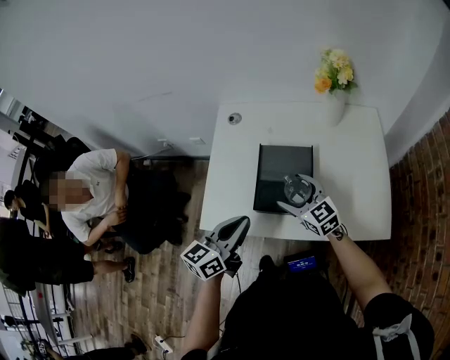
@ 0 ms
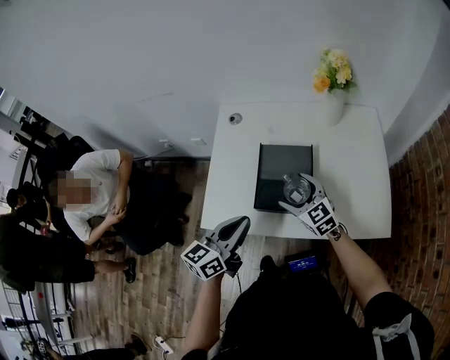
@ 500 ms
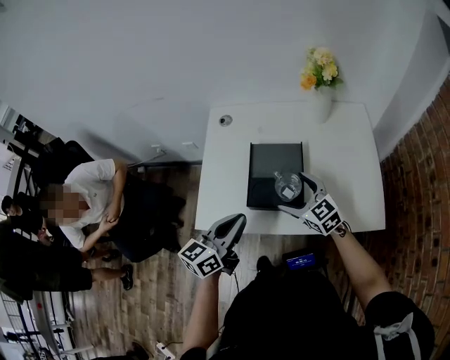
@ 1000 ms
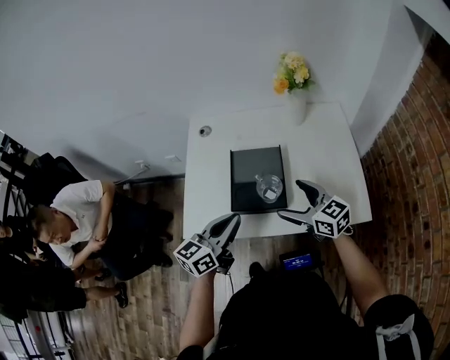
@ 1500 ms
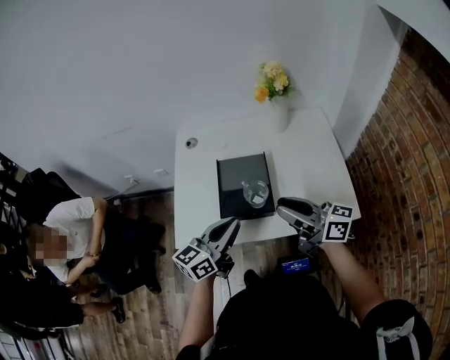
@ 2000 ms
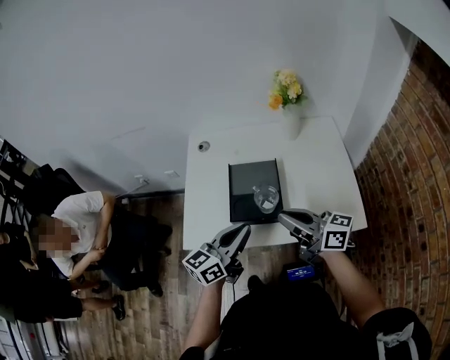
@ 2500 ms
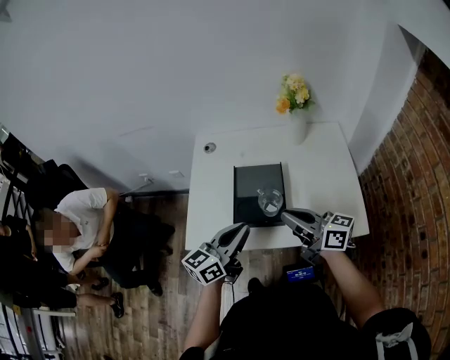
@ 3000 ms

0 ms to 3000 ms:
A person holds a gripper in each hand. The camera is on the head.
0 ms to 1500 ms: The right gripper travels to the right, backward and upward by roughly 10 cm.
1500 ms to 3000 ms: The right gripper heads upward, covering about 10 cm, rotates approximately 30 degrees, and closes.

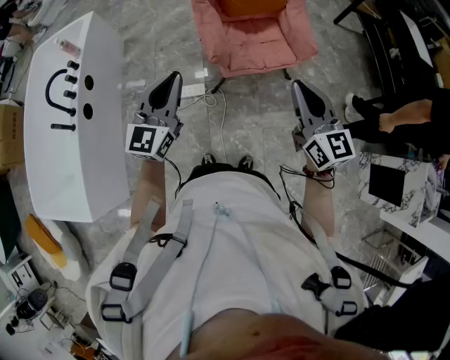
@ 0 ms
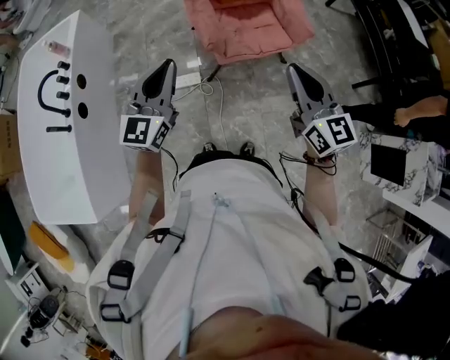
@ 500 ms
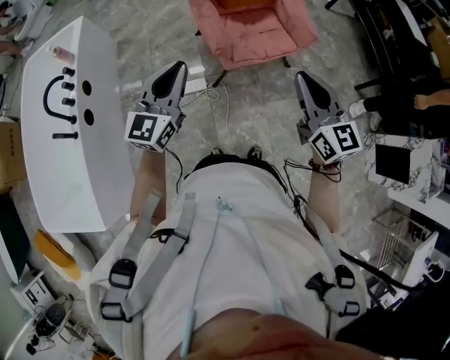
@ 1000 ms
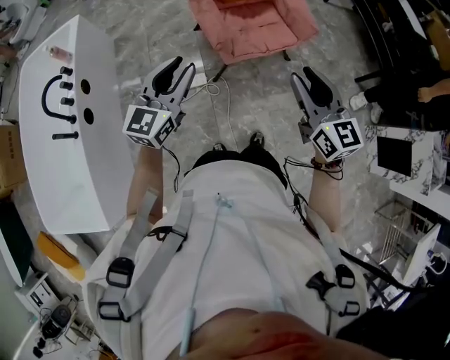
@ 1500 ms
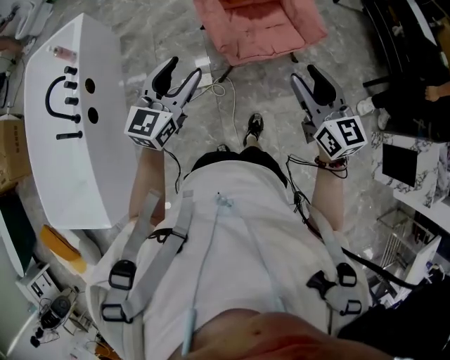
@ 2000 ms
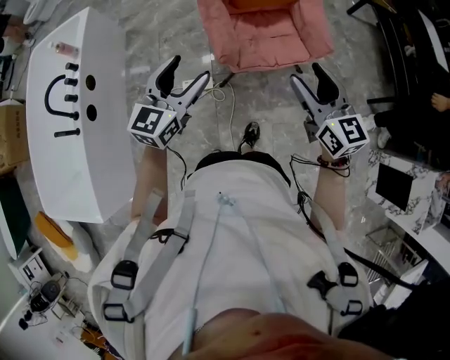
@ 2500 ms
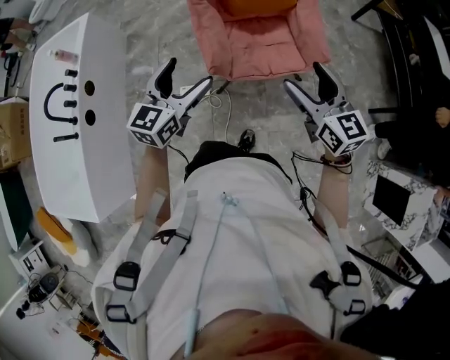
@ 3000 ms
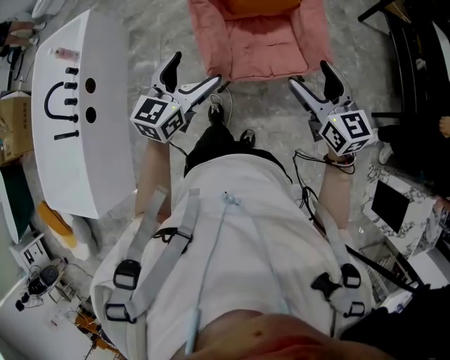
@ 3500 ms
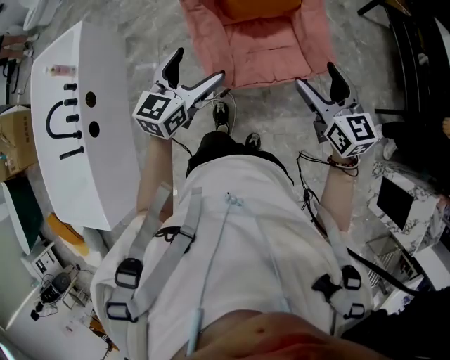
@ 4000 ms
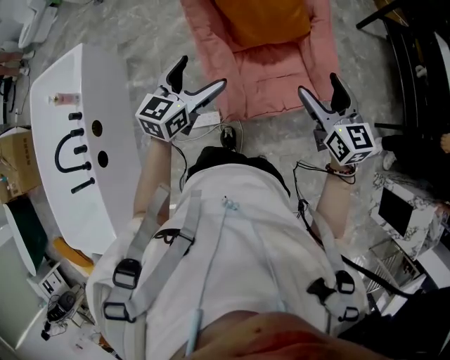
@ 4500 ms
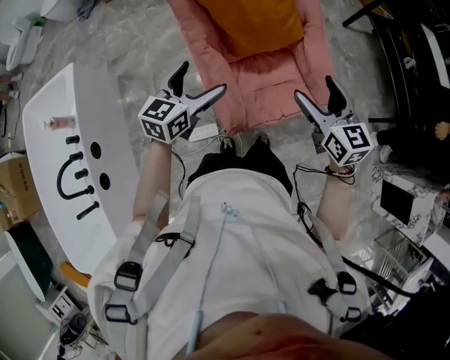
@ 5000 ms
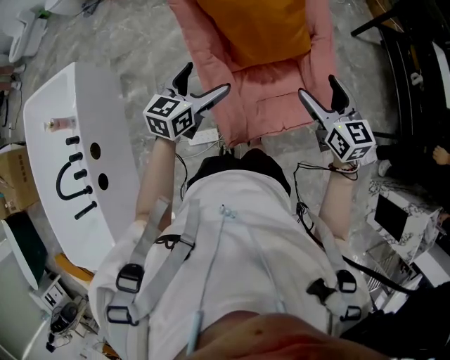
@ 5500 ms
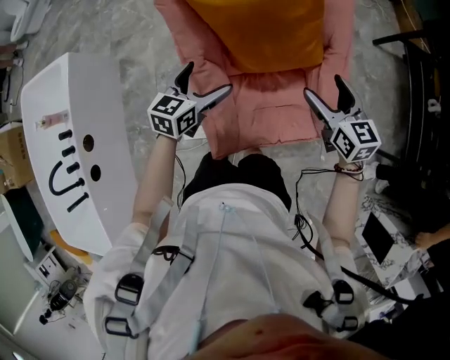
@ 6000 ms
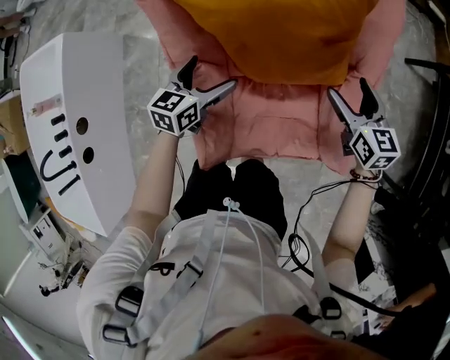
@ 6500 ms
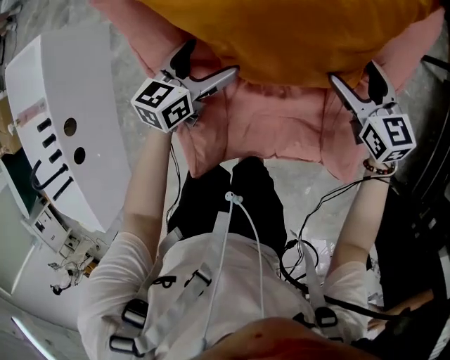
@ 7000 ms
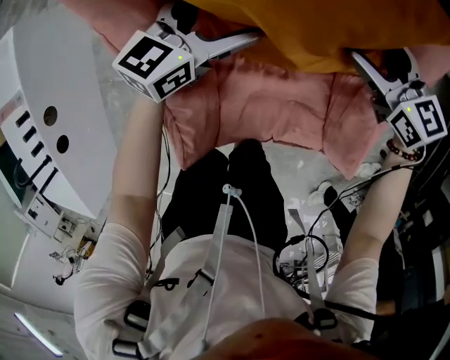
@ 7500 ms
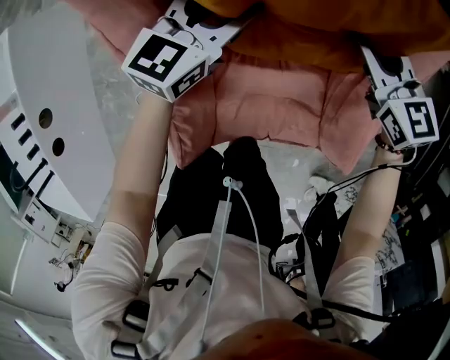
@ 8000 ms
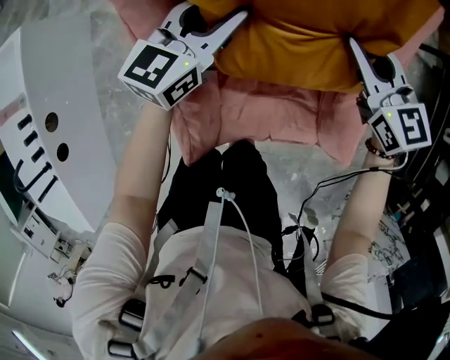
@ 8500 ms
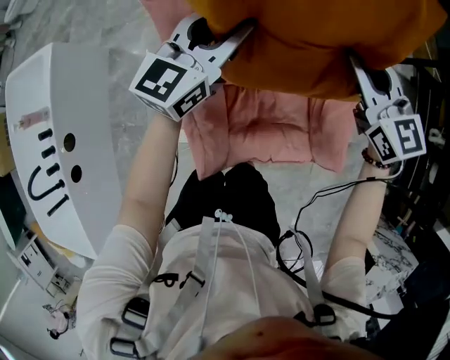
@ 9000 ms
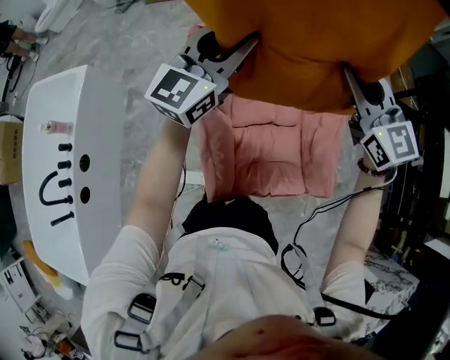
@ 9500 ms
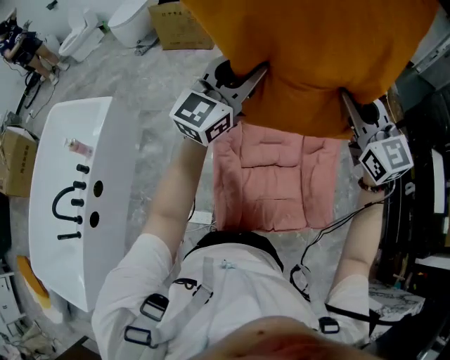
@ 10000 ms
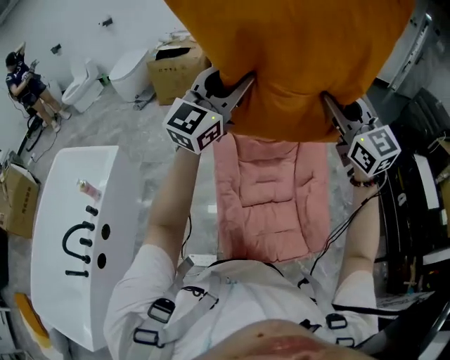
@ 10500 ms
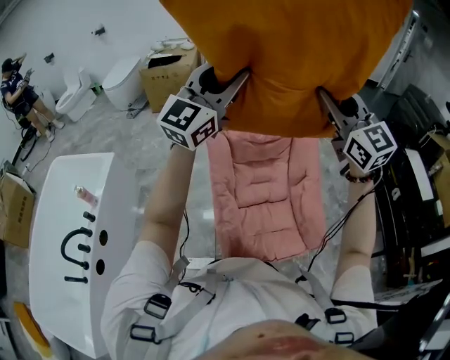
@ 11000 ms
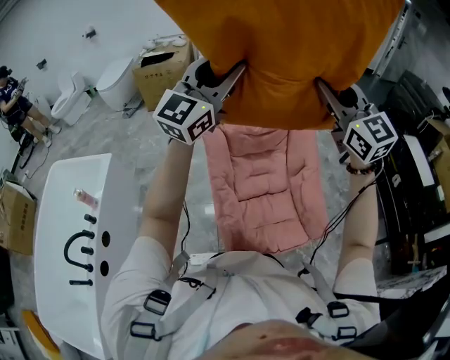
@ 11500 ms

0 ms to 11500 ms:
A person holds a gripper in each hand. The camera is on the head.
0 ms to 2000 ms: The left gripper ends up some 5 cm from where it was, and opens up. The right gripper ends up roughly 5 cm from where it was, and opens up.
2000 ms to 4000 ms: The grippers both shift forward and to the right by some 25 cm. The left gripper opens up. The right gripper opens its fingers.
4000 ms to 6000 ms: The left gripper is displaced forward and downward by approximately 35 cm; the right gripper goes some 35 cm forward.
6000 ms to 7500 ms: The right gripper moves forward and downward, roughly 30 cm, and rotates approximately 20 degrees. The left gripper moves forward, downward and to the right, some 25 cm.
7500 ms to 9500 ms: The grippers both shift upward by some 40 cm. The right gripper turns by some 40 degrees, and closes up. The left gripper swivels roughly 40 degrees, and closes.
9500 ms to 11500 ms: Both grippers travel together upward and backward, roughly 30 cm. The left gripper changes its angle by roughly 20 degrees.

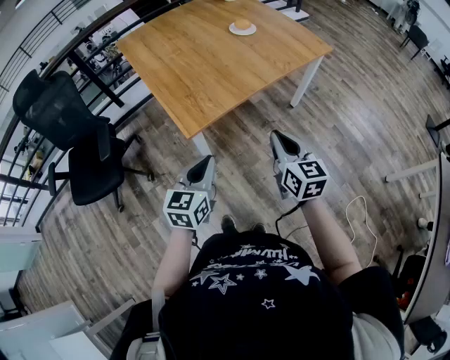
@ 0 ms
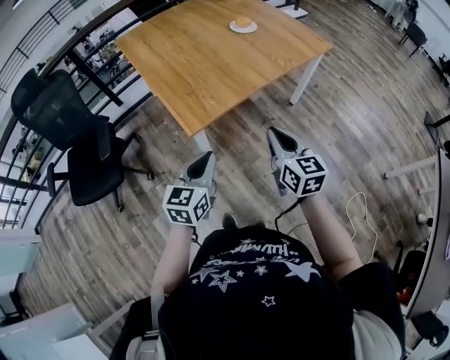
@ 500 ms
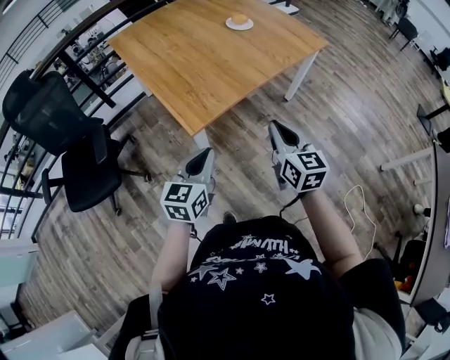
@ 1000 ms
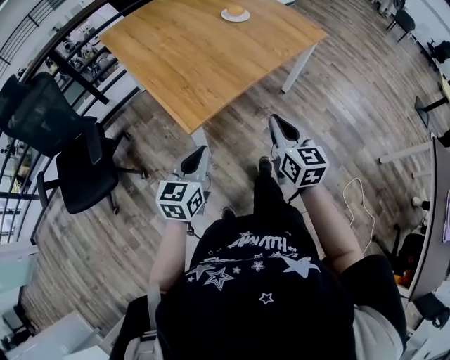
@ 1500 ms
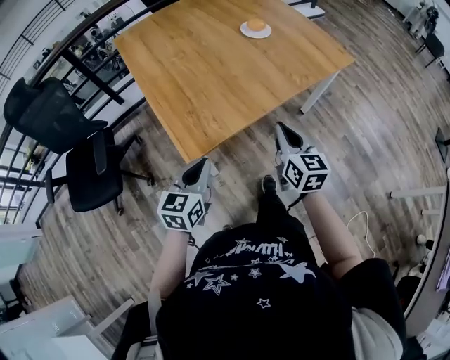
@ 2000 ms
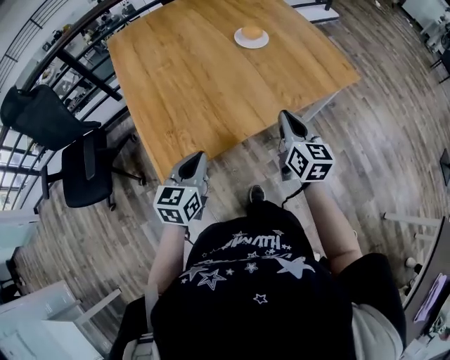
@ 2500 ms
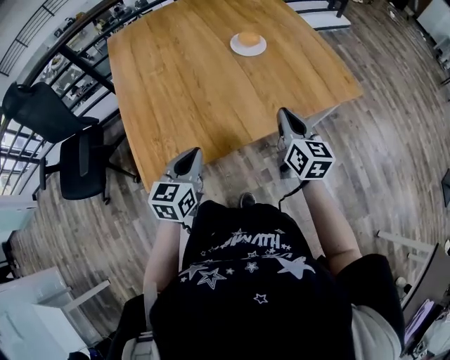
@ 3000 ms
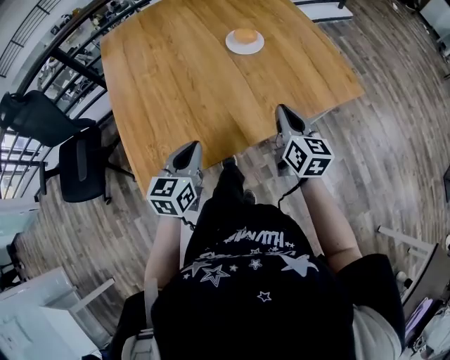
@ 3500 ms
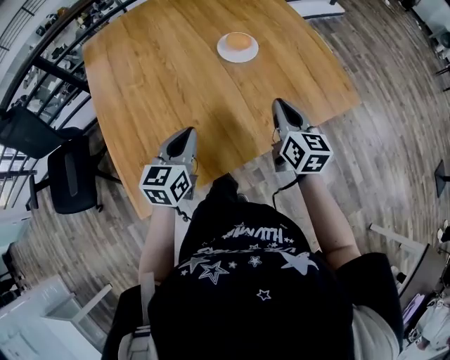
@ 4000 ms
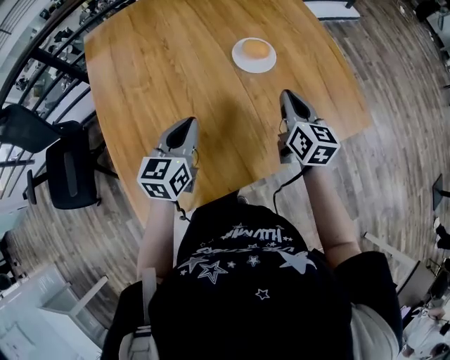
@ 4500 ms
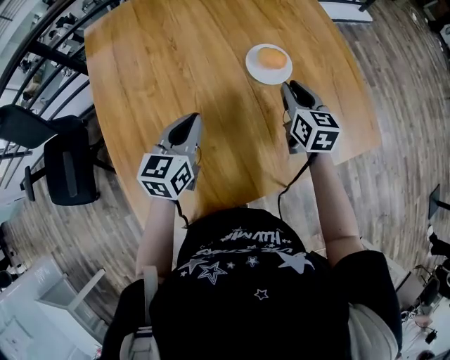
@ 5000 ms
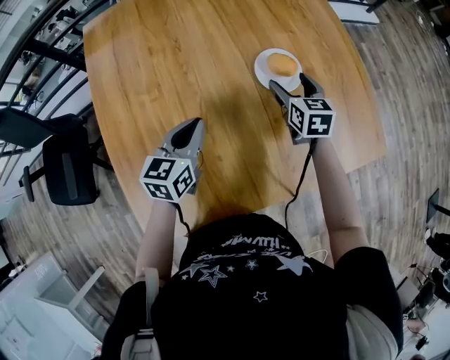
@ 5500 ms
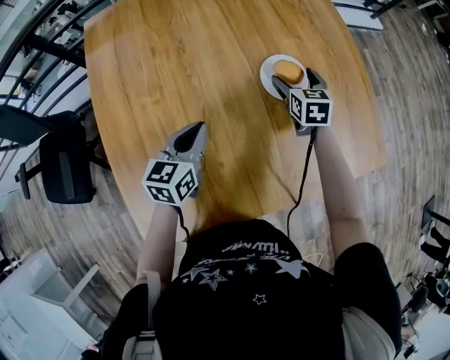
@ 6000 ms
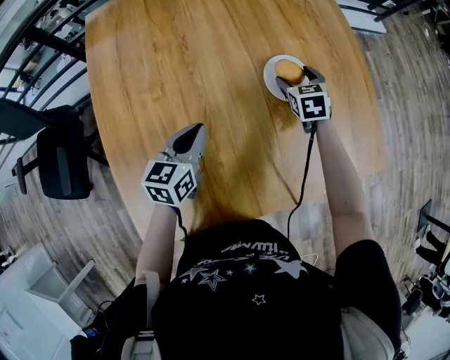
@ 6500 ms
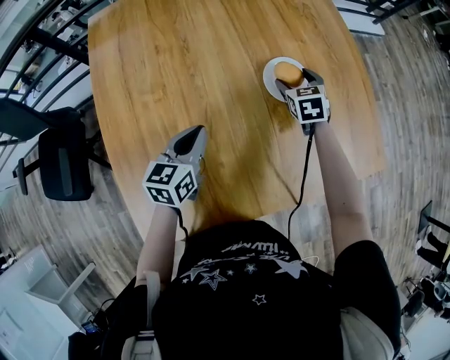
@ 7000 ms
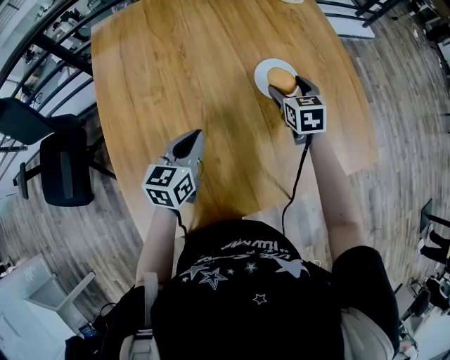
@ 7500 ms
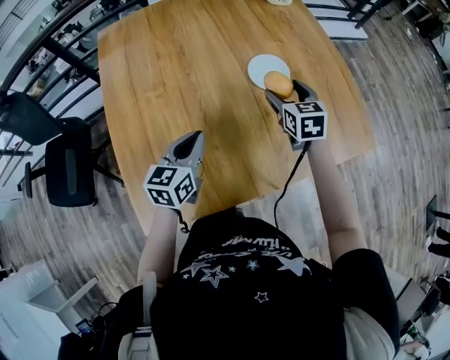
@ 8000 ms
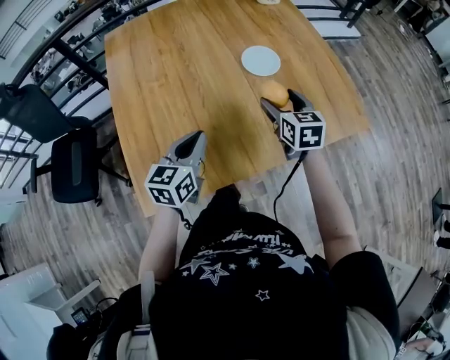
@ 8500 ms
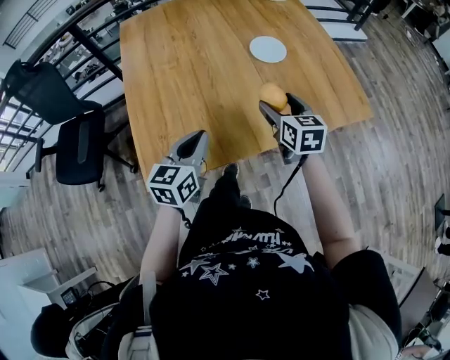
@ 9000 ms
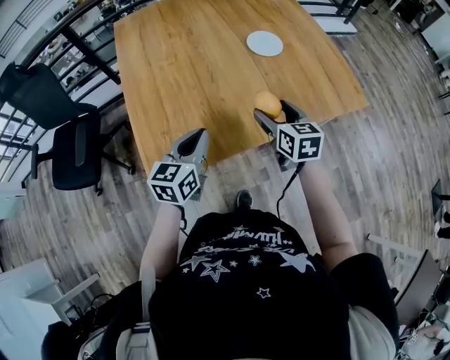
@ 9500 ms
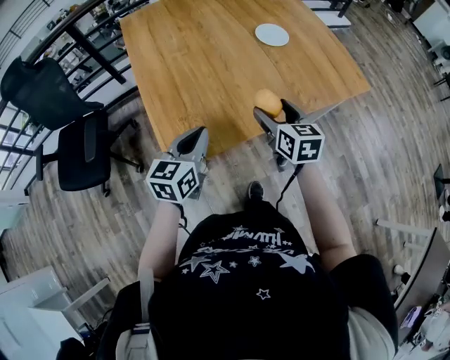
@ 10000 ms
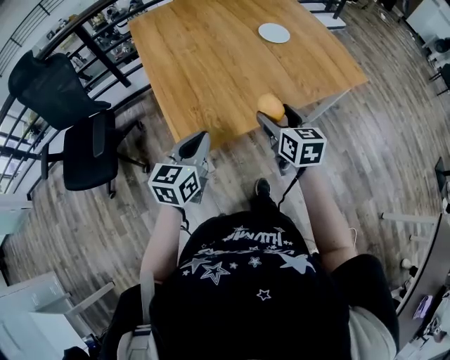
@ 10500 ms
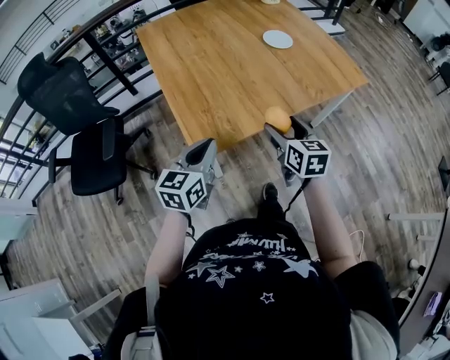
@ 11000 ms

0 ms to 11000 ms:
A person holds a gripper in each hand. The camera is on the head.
0 ms to 2000 ms: The grippers both shift forward by roughly 15 cm.
2000 ms to 3500 ms: The two grippers go approximately 30 cm forward and to the right.
3500 ms to 5500 ms: Both grippers move forward, roughly 30 cm. The right gripper changes its angle by about 30 degrees, and opens.
7500 ms to 9000 ms: The grippers both shift backward by approximately 25 cm.
9000 ms to 11000 ms: Both grippers travel together backward and to the left, about 25 cm.

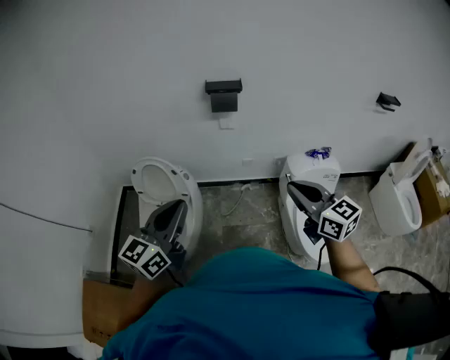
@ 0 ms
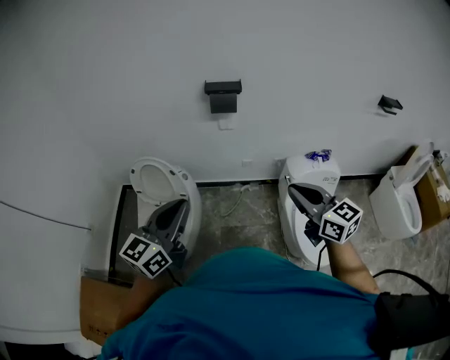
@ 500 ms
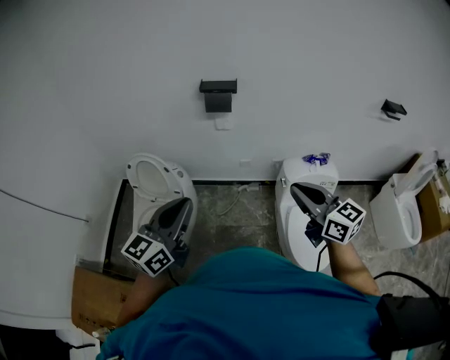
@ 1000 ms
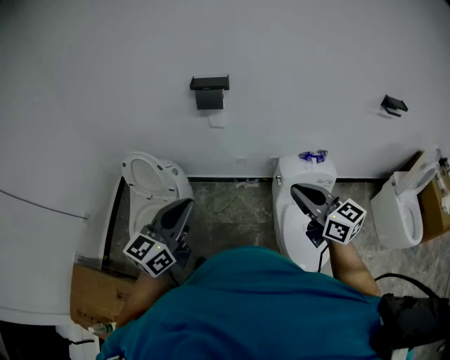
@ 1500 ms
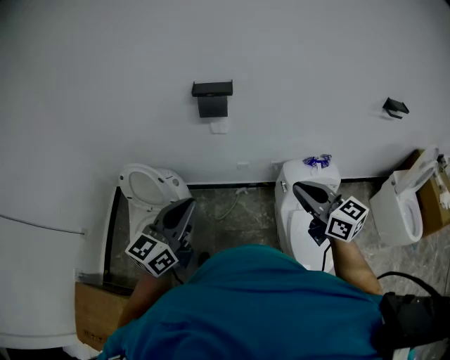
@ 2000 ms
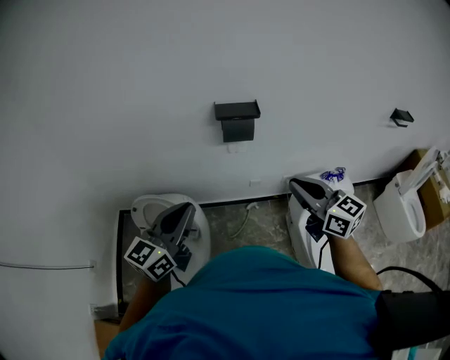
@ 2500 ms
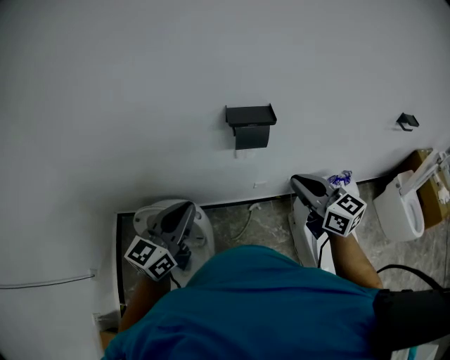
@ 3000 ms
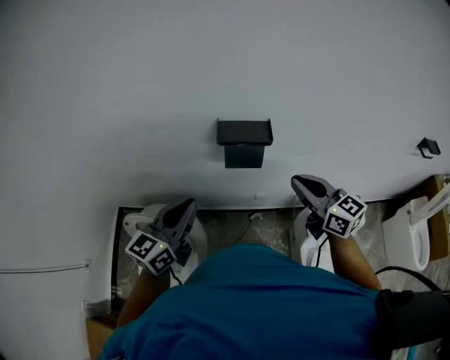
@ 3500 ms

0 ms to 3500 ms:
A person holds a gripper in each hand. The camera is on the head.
0 ms to 2000 ms: The right gripper heads forward and to the right, covering approximately 10 cm. Meanwhile the left gripper travels to the right and forward by about 15 cm.
2000 ms to 3500 ms: The grippers both shift forward by approximately 30 cm.
